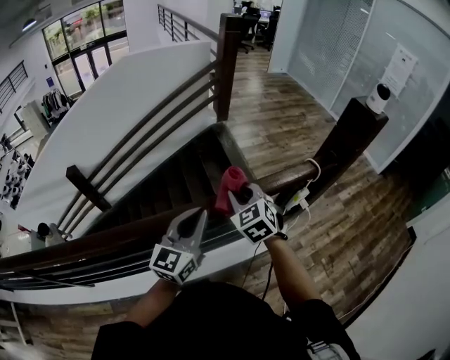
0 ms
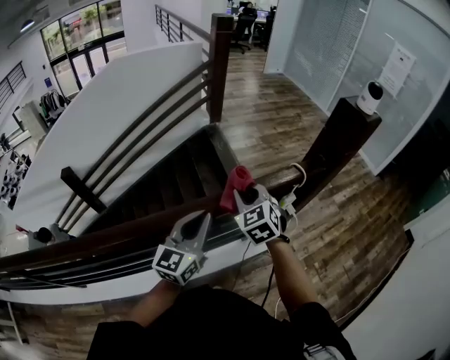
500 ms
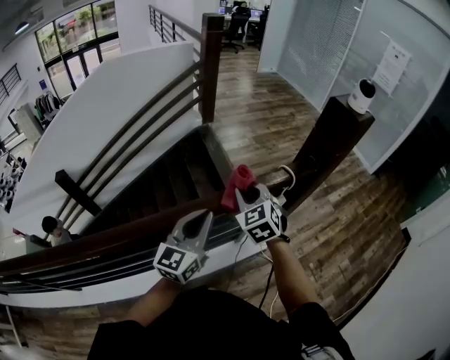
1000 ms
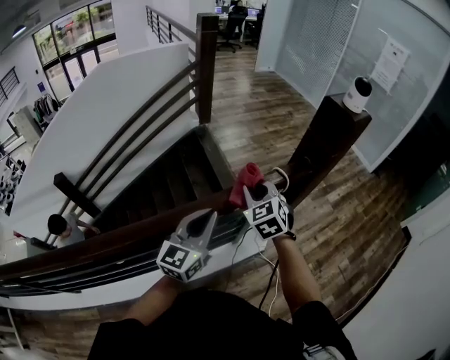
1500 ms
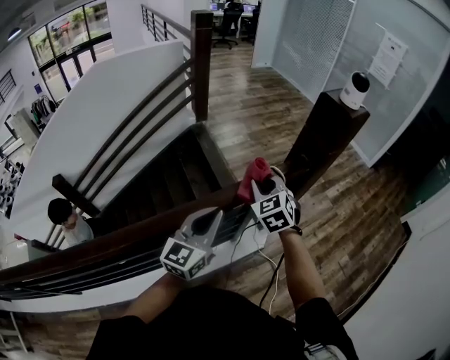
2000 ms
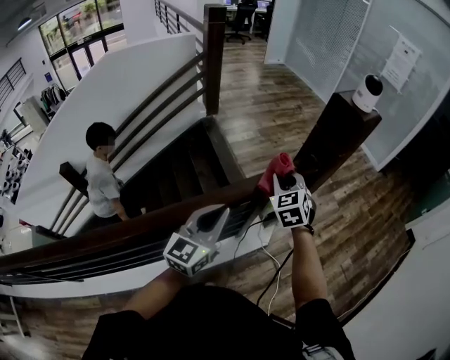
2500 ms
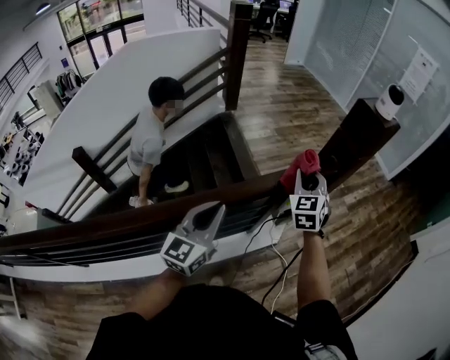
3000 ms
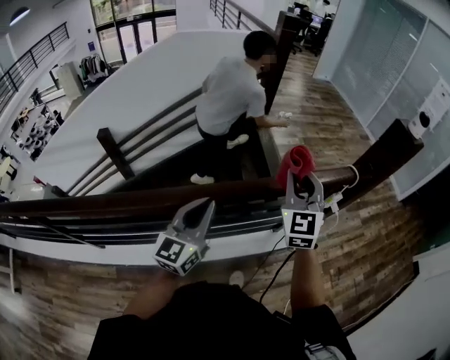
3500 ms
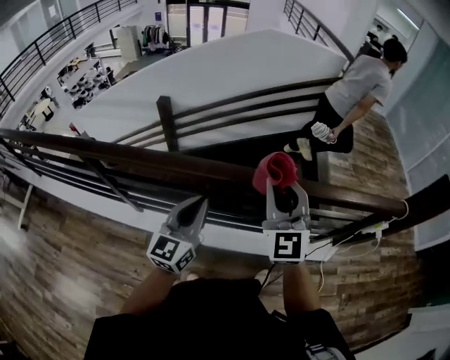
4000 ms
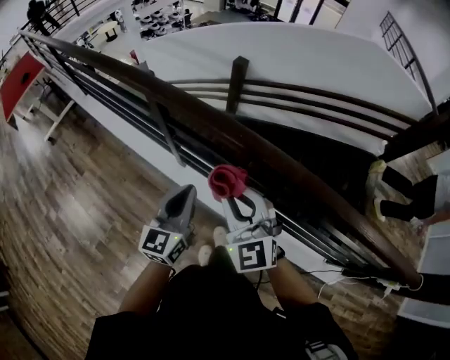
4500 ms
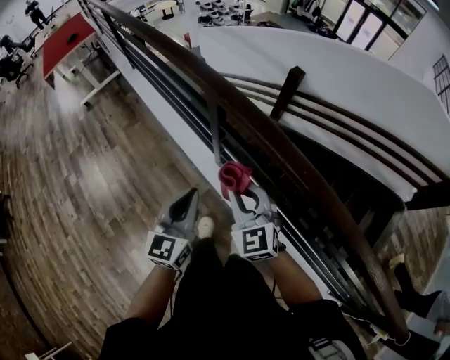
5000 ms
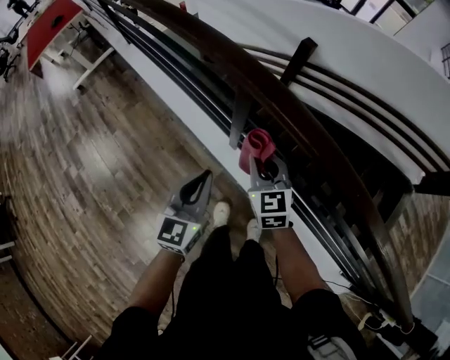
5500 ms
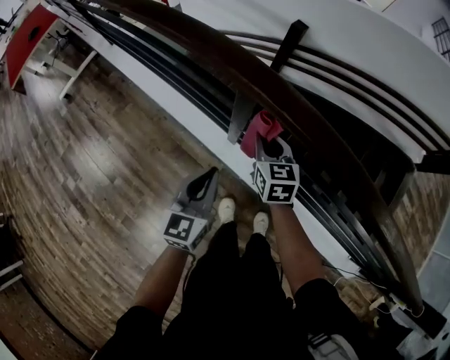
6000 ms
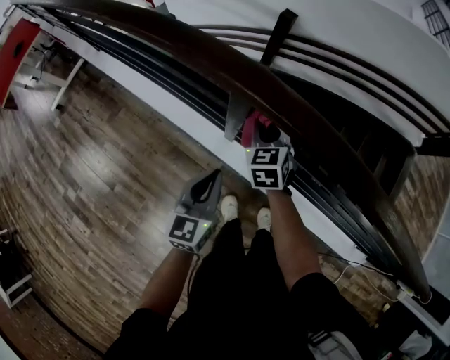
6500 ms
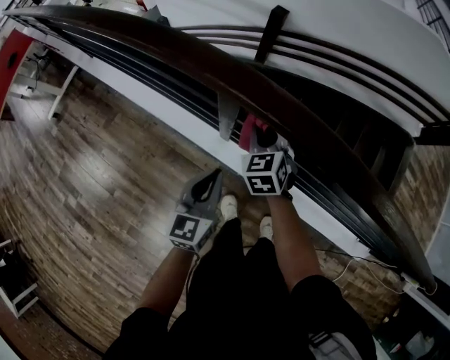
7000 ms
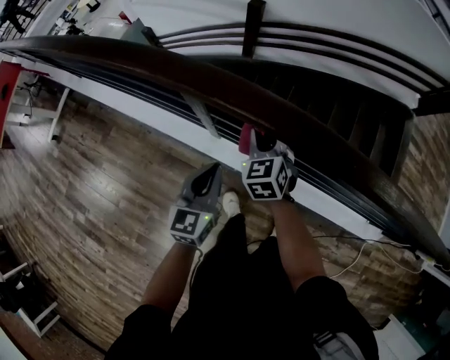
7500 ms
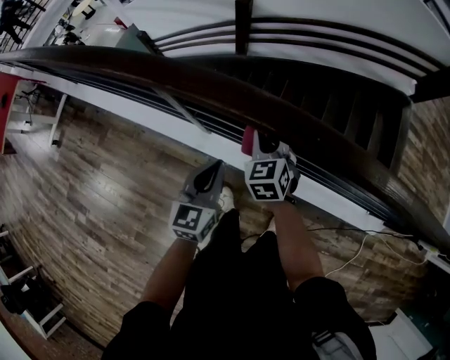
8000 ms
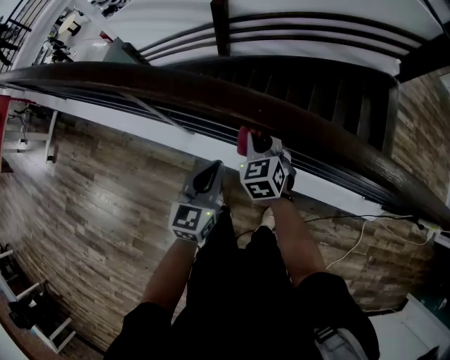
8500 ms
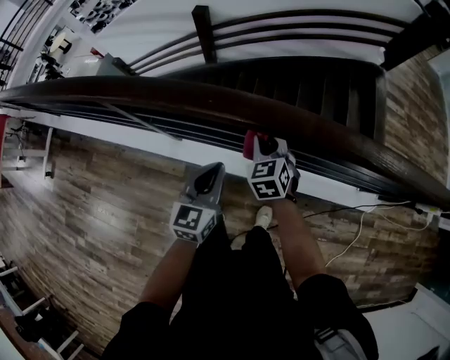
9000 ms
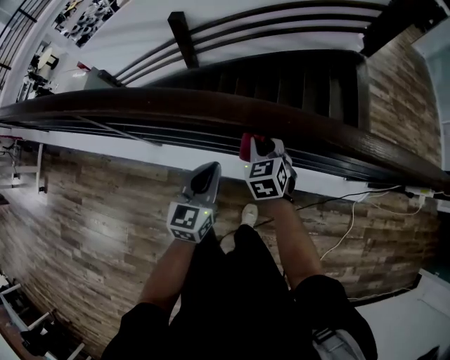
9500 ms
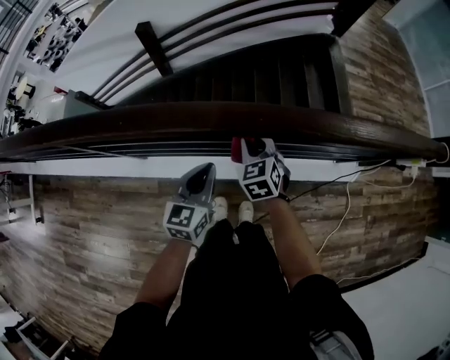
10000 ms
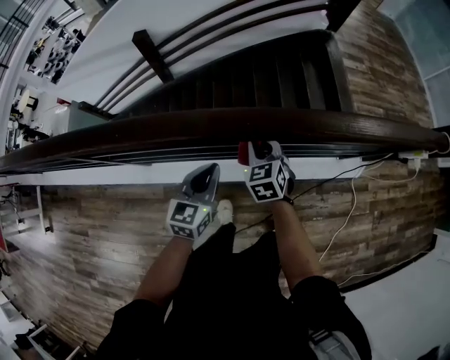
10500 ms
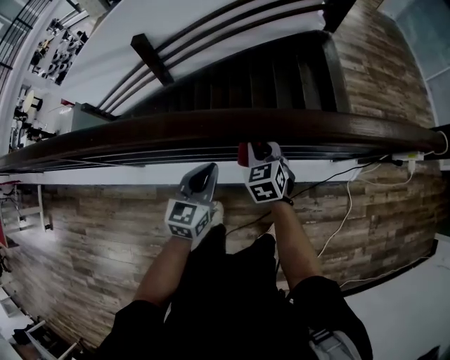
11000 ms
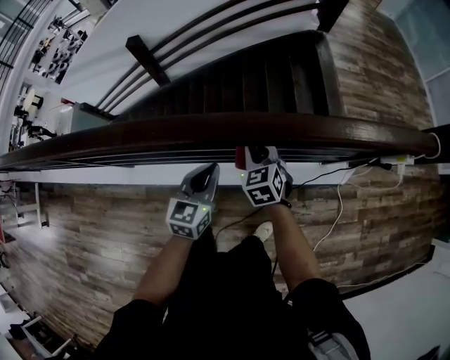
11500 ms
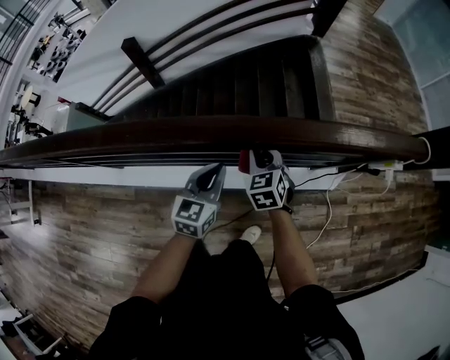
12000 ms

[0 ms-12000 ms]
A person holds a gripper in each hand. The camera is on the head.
0 ms to 2000 ms: The two grippers go approximately 20 cm to the right and forward.
2000 ms to 4000 ms: Both grippers are carried some 50 cm. The right gripper tilts its fingers about 30 degrees upward; the left gripper changes its angle by roughly 40 degrees.
4000 ms to 6000 ms: The left gripper moves about 40 cm, and rotates about 40 degrees. Meanwhile the right gripper shifts by about 60 cm, and tips its fingers downward by approximately 40 degrees.
6000 ms to 8000 ms: The grippers both shift to the right by roughly 15 cm. The right gripper swivels about 20 degrees.
8000 ms to 10000 ms: Both grippers move to the right, about 25 cm. The left gripper changes its angle by about 20 degrees.
10000 ms to 12000 ms: Both grippers move to the right, about 25 cm.

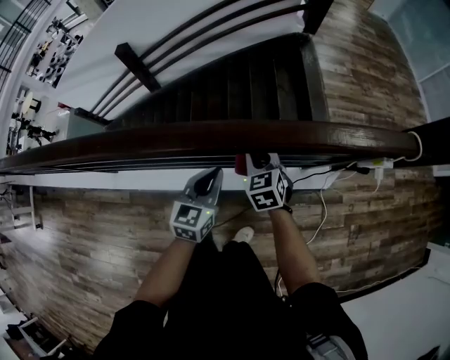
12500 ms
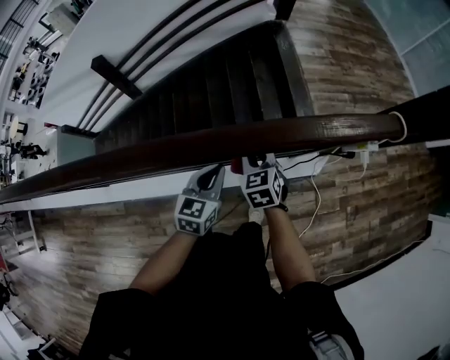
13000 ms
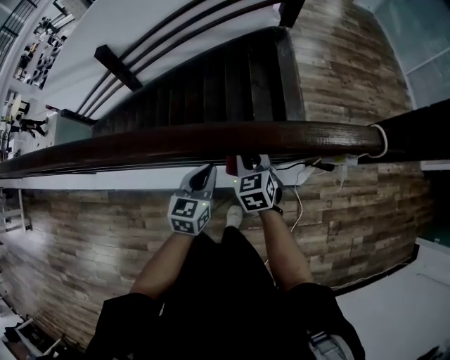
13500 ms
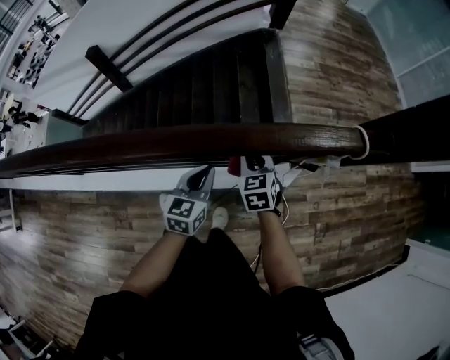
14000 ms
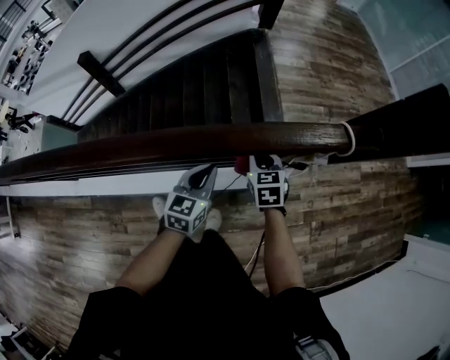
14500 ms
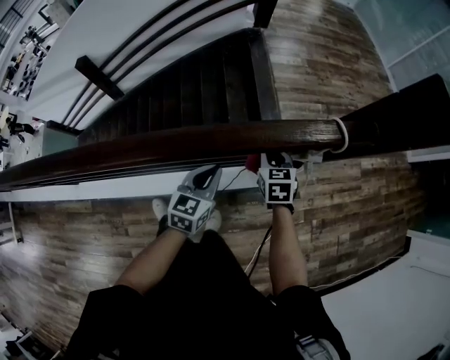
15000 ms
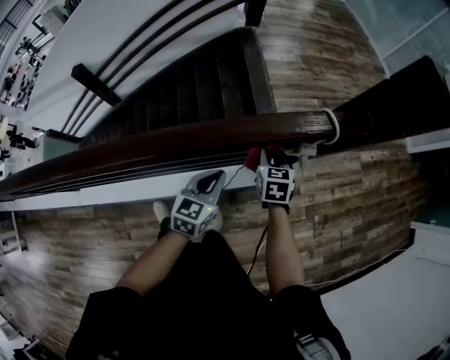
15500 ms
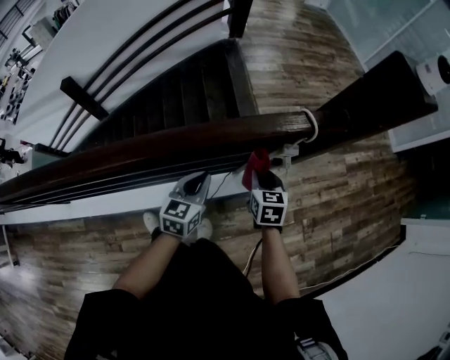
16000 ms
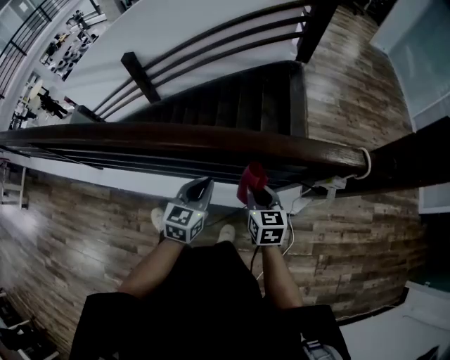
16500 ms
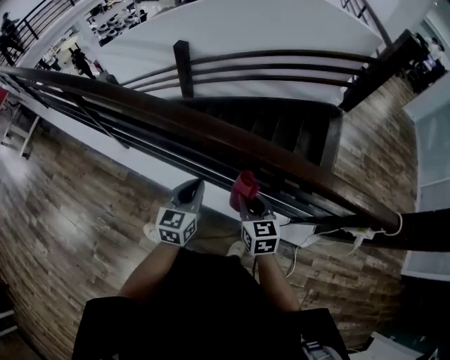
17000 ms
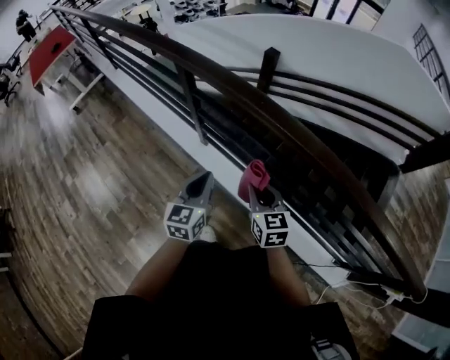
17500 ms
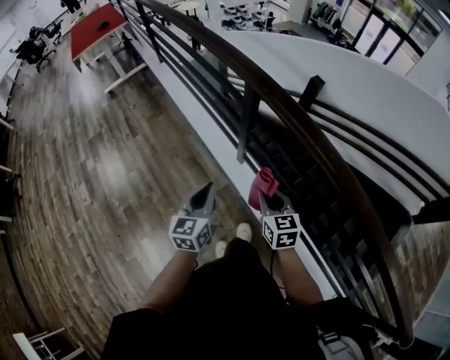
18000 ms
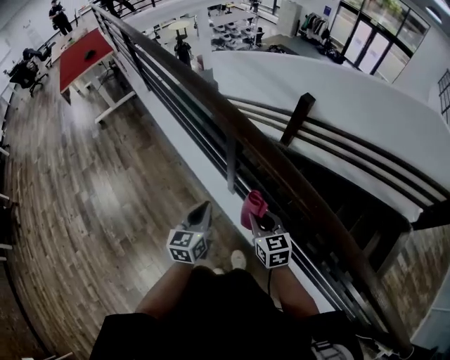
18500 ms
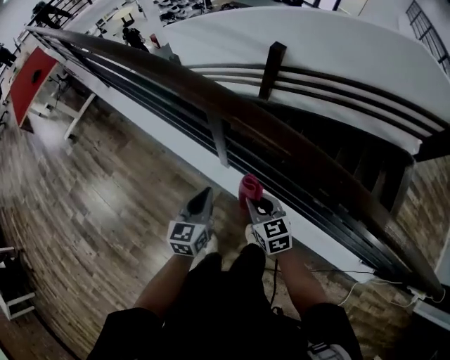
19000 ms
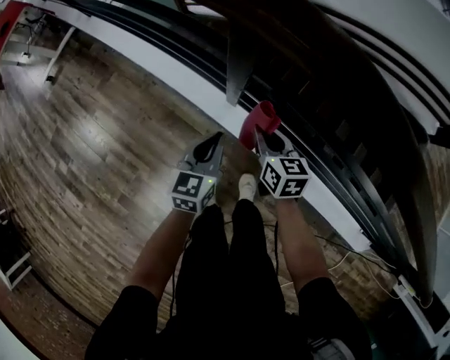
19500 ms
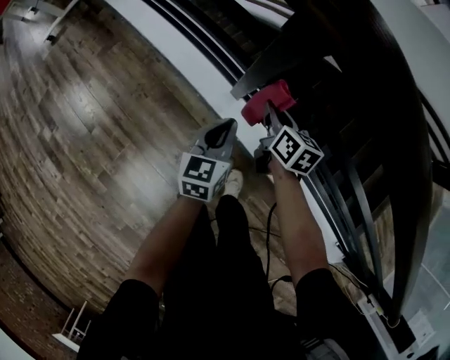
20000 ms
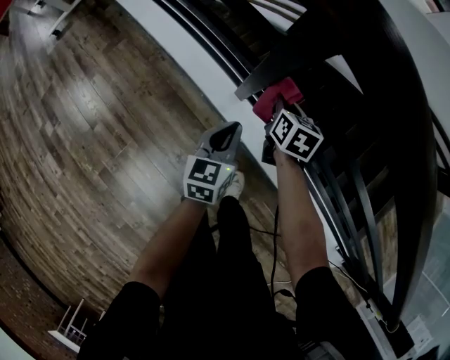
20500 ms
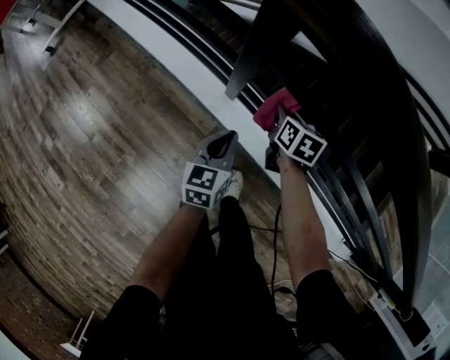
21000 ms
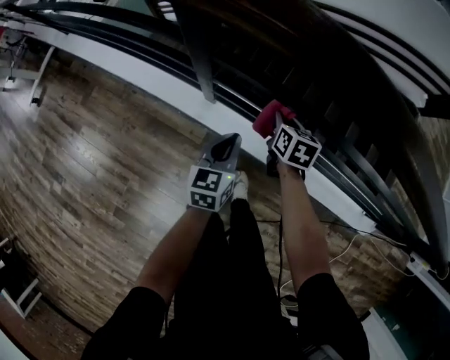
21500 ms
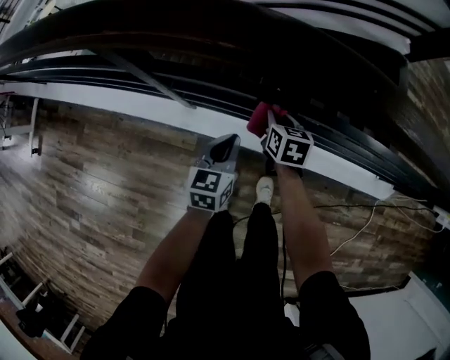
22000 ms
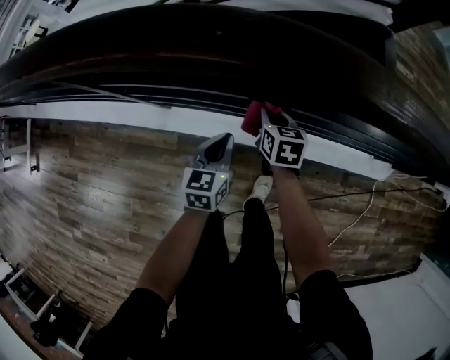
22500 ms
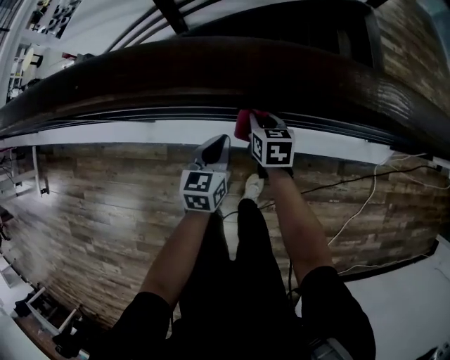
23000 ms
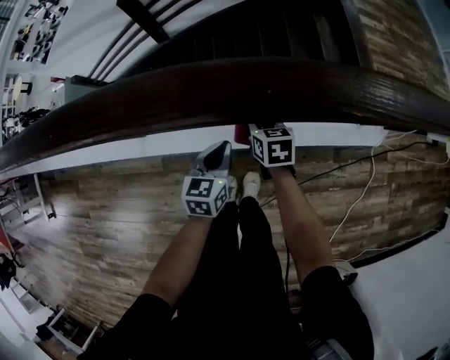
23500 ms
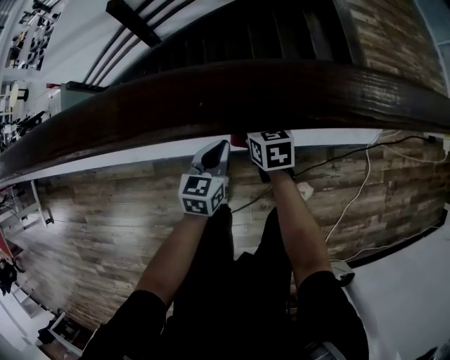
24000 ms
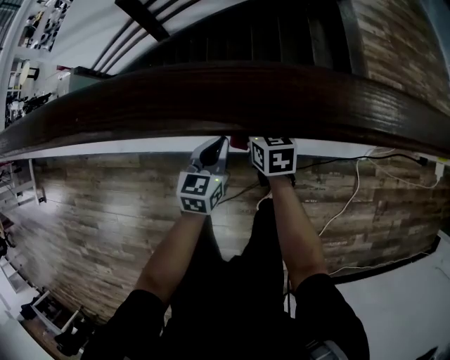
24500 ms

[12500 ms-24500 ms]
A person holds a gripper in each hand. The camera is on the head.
12500 ms to 14500 ms: Both grippers travel together to the right, about 25 cm.
14500 ms to 16500 ms: The left gripper changes place by about 10 cm. Meanwhile the right gripper changes place by about 10 cm.
16500 ms to 18500 ms: The pair of grippers is taken about 70 cm. The left gripper turns by some 60 degrees, while the right gripper swivels about 50 degrees.
18500 ms to 20500 ms: The right gripper moves downward and forward, some 25 cm, and changes its angle by some 40 degrees, while the left gripper goes some 15 cm downward.
20500 ms to 22500 ms: The left gripper changes place by roughly 25 cm, and changes its angle by approximately 30 degrees. Meanwhile the right gripper moves roughly 30 cm, and rotates some 30 degrees.
22500 ms to 24500 ms: Both grippers move to the right, about 25 cm.

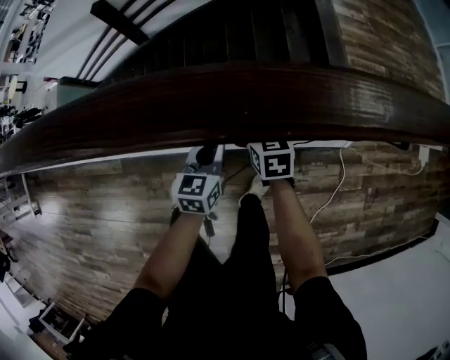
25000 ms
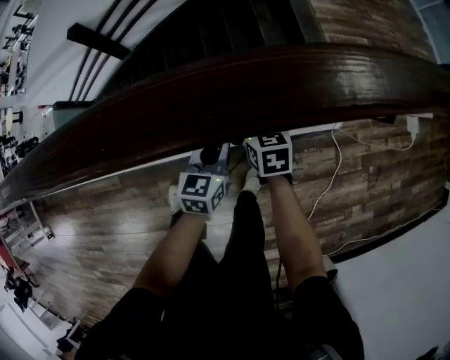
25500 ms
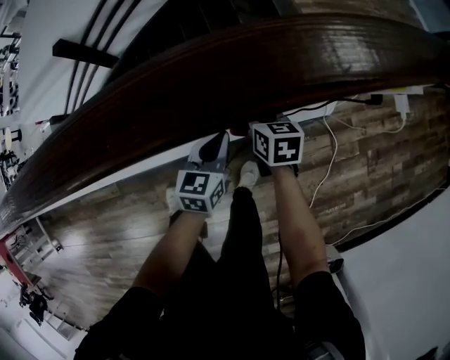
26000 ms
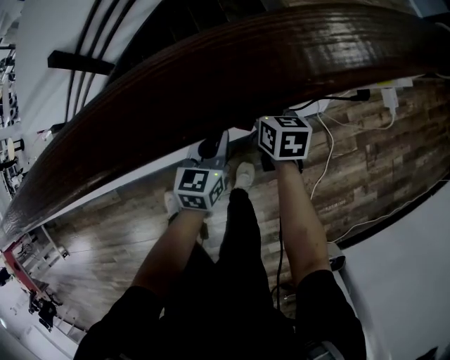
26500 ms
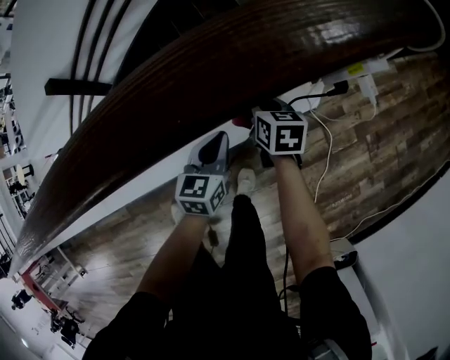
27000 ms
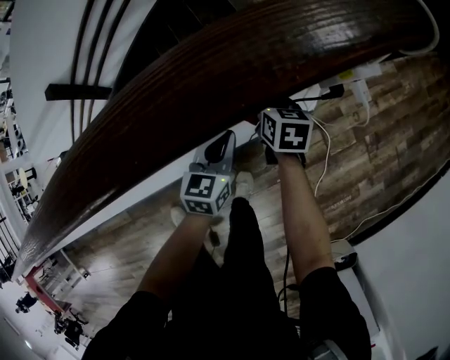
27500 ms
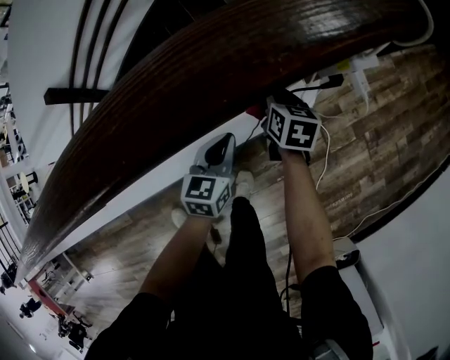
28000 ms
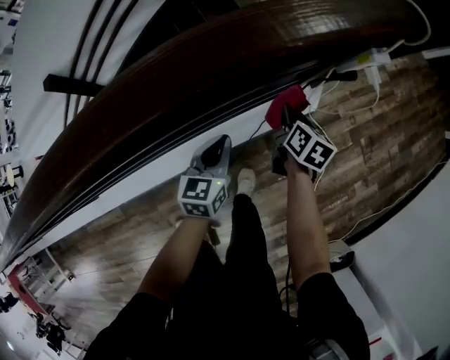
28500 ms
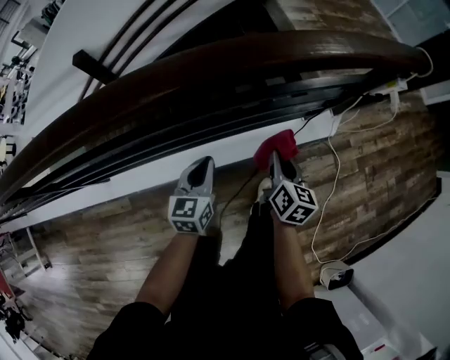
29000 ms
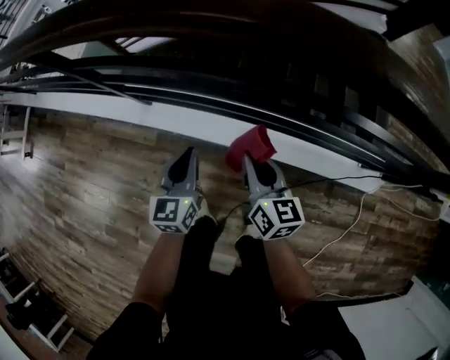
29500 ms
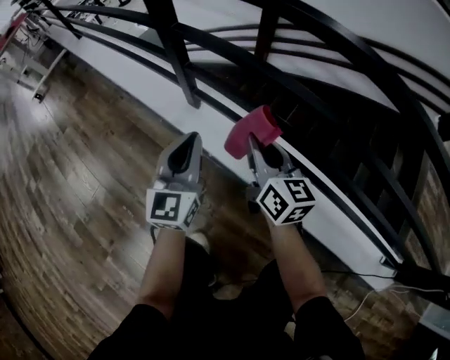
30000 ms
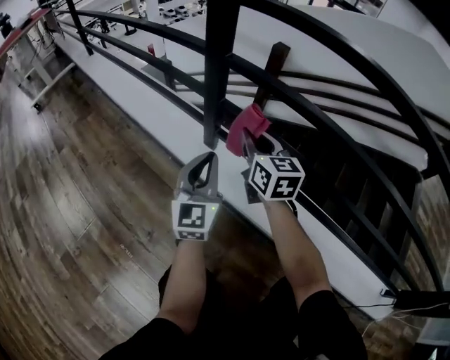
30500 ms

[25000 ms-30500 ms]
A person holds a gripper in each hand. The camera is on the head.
25000 ms to 27000 ms: The grippers both shift to the right by roughly 25 cm. The left gripper turns by about 20 degrees; the right gripper turns by approximately 30 degrees.
27000 ms to 28500 ms: The right gripper is displaced to the right by approximately 5 cm, and changes its angle by some 20 degrees.
28500 ms to 30500 ms: The pair of grippers is taken roughly 80 cm. The right gripper swivels some 90 degrees. Meanwhile the left gripper changes its angle by about 80 degrees.
